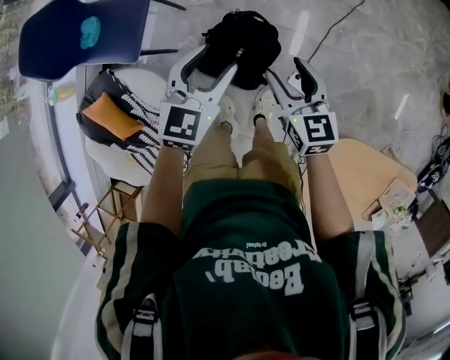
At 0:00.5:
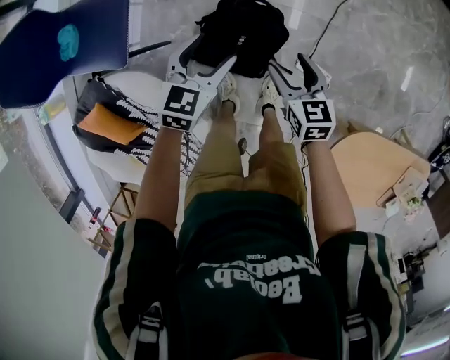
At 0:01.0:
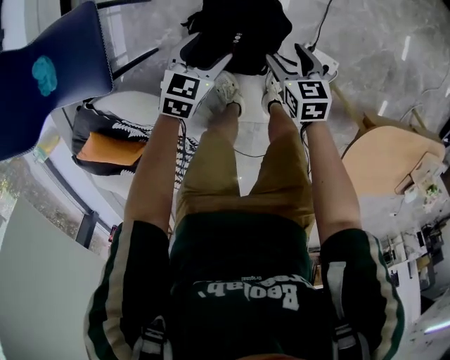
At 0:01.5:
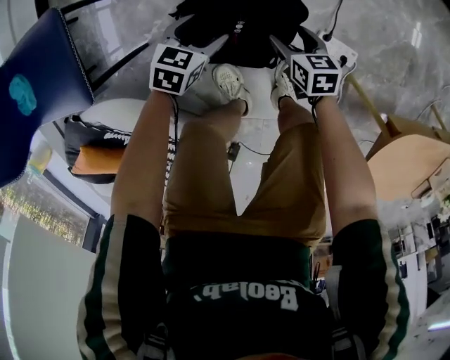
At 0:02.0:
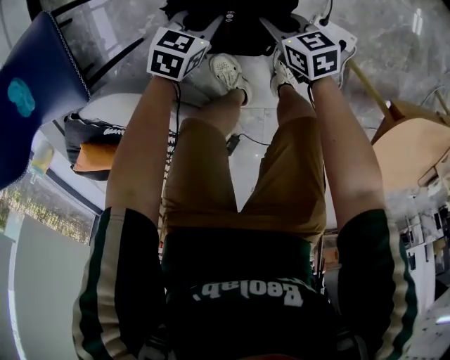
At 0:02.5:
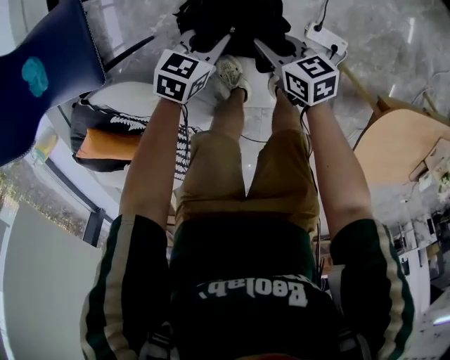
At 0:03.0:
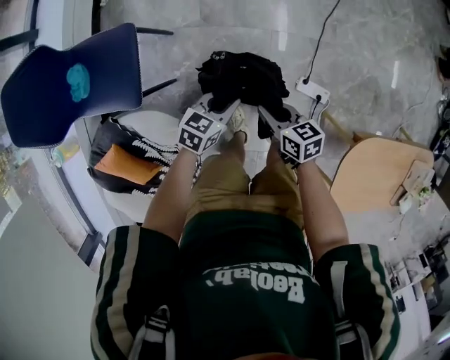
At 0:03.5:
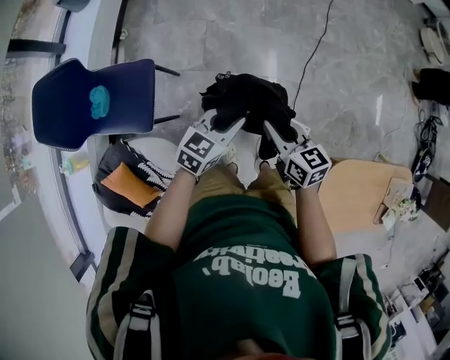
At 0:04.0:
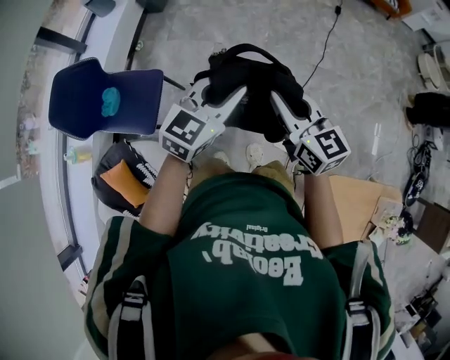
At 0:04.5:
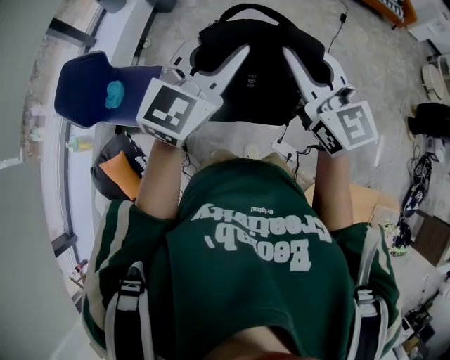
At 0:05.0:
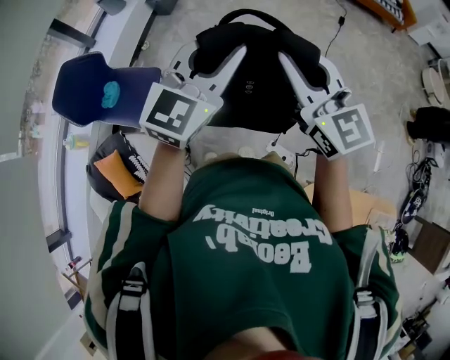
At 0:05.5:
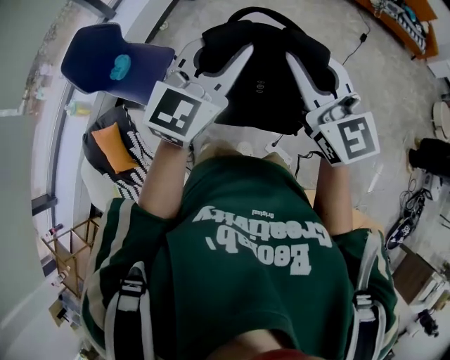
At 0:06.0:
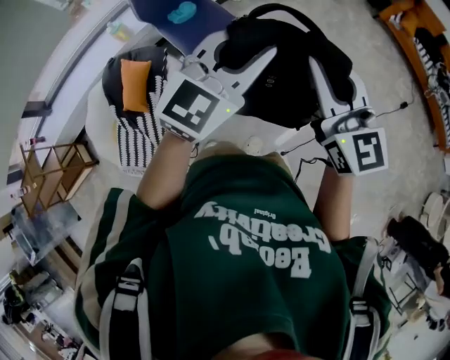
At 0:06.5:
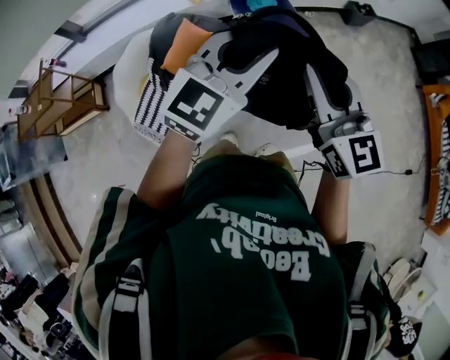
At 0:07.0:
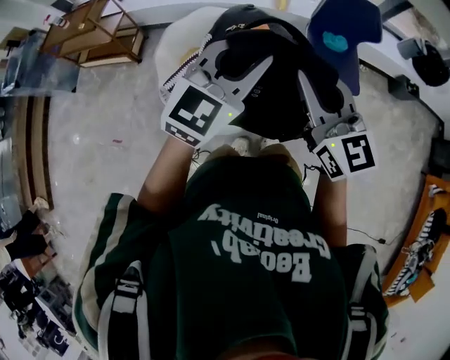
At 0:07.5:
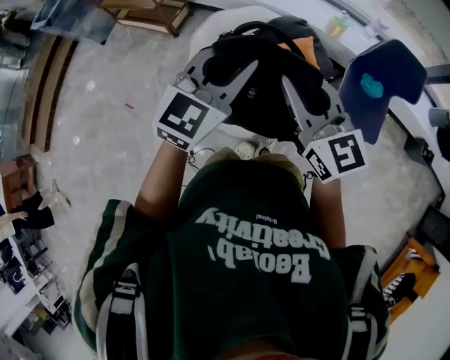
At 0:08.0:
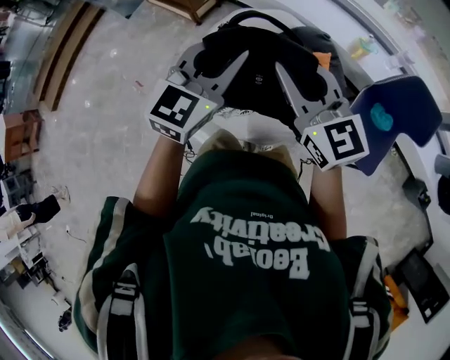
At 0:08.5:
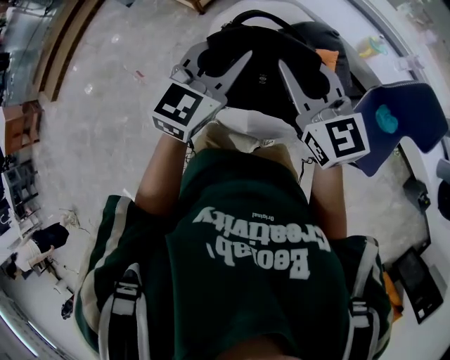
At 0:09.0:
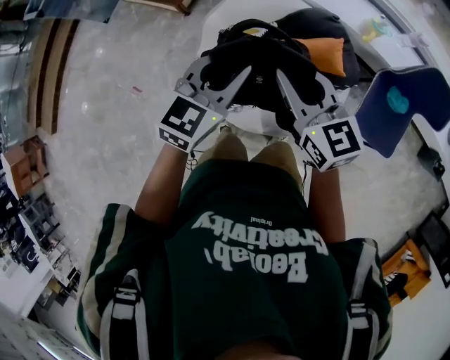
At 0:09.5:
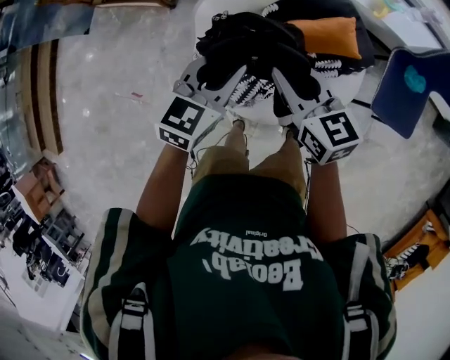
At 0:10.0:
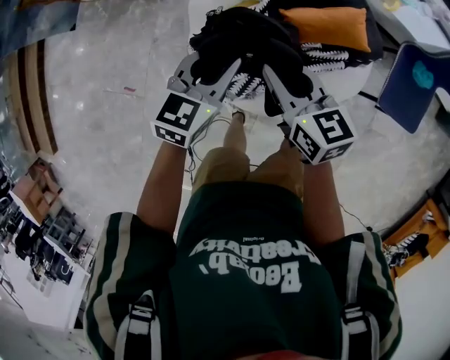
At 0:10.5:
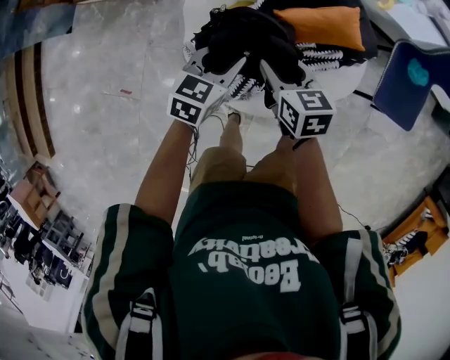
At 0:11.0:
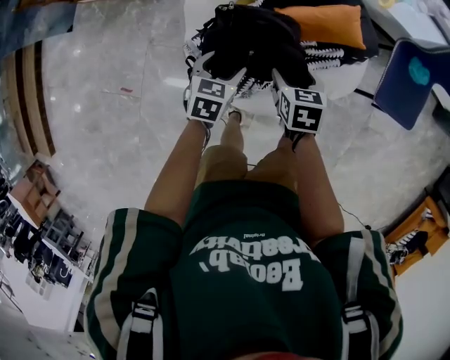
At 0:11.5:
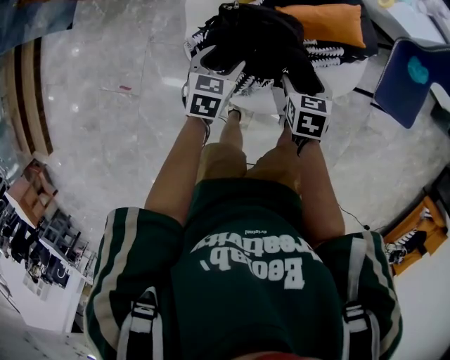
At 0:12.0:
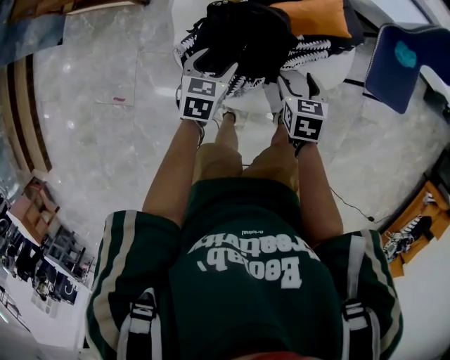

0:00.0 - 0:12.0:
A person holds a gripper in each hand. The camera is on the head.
0:00.0 - 0:02.0: The two grippers go roughly 50 cm downward. The right gripper rotates some 30 degrees, and closes, while the left gripper swivels roughly 40 degrees, and closes its fingers.
0:02.0 - 0:04.0: Both grippers move upward, about 80 cm. The right gripper tilts its fingers some 30 degrees upward; the left gripper points its fingers roughly 30 degrees further upward.
0:04.0 - 0:06.0: The right gripper heads upward, covering roughly 15 cm, and changes its angle by approximately 40 degrees, while the left gripper changes place by some 20 cm, and changes its angle by roughly 40 degrees.
0:06.0 - 0:08.0: The two grippers travel together, roughly 70 cm. The left gripper swivels approximately 80 degrees; the right gripper swivels about 80 degrees.
0:08.0 - 0:10.0: Both grippers move downward, forward and to the left, about 40 cm. The left gripper turns by some 30 degrees, while the right gripper changes its angle by some 40 degrees.
0:10.0 - 0:12.0: The right gripper moves downward, to the right and backward, about 15 cm, angles its fingers downward, by about 30 degrees, and opens. The left gripper is displaced downward and backward by some 10 cm, and opens.

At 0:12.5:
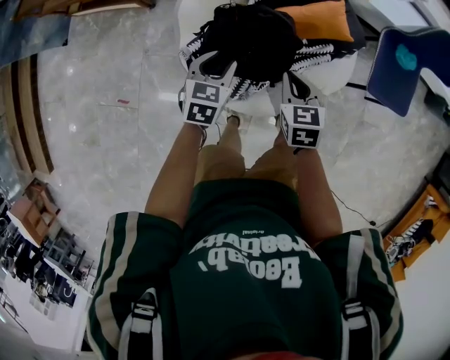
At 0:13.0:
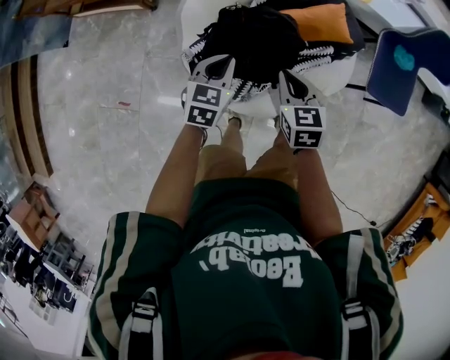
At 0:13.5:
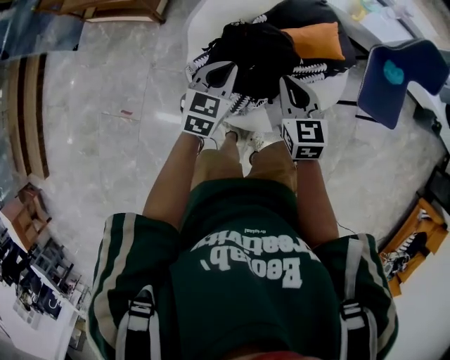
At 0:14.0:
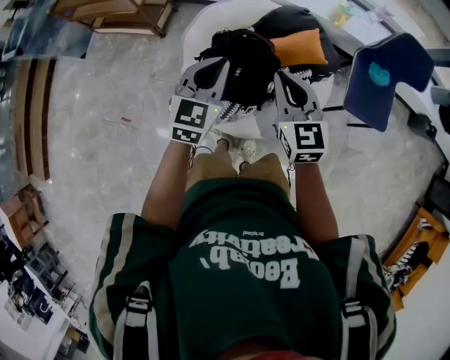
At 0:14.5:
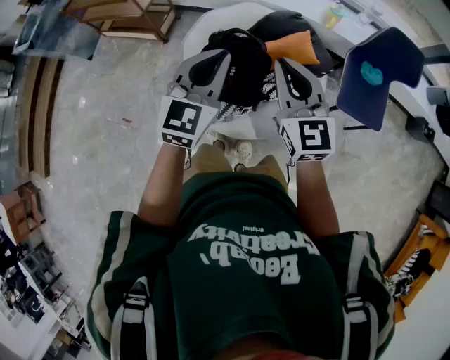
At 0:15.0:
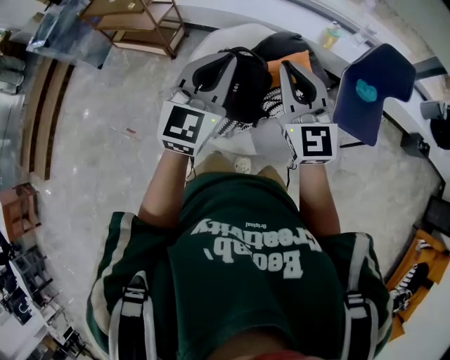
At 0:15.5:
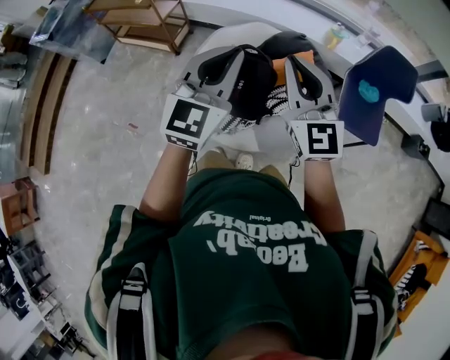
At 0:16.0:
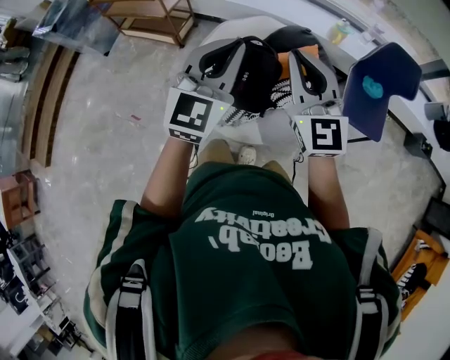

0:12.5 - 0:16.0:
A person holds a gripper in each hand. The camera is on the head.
0:12.5 - 0:14.5: The two grippers go roughly 35 cm upward. The right gripper tips its fingers upward by some 40 degrees. The left gripper angles its fingers upward, by roughly 30 degrees, and closes up.
0:14.5 - 0:16.0: The two grippers go about 15 cm upward and backward.

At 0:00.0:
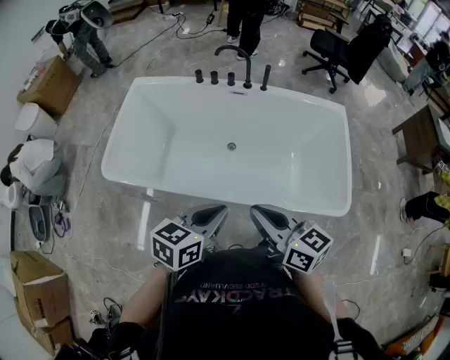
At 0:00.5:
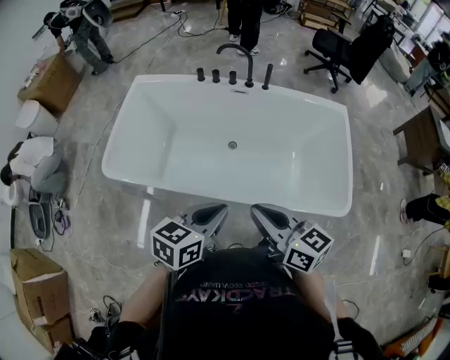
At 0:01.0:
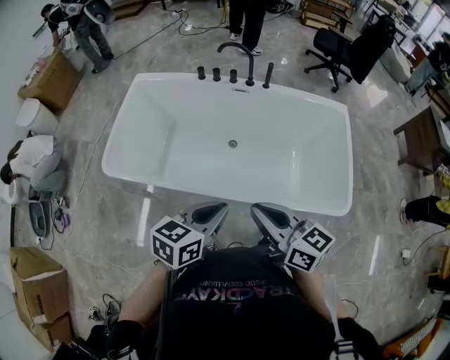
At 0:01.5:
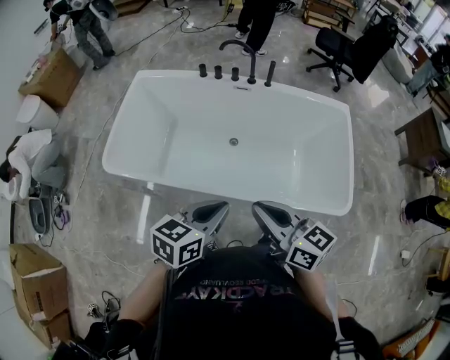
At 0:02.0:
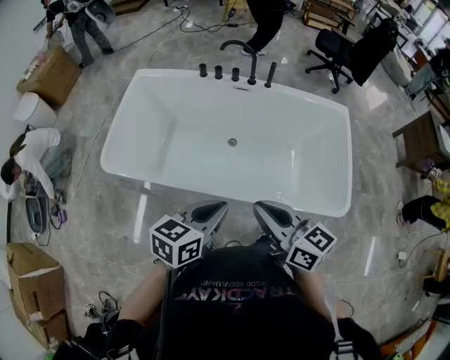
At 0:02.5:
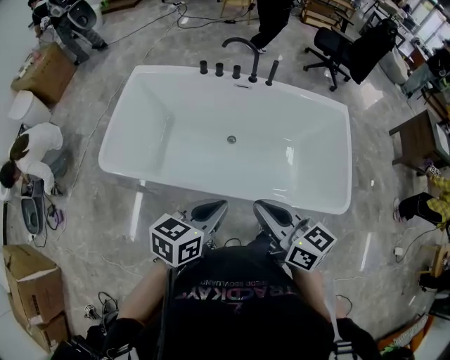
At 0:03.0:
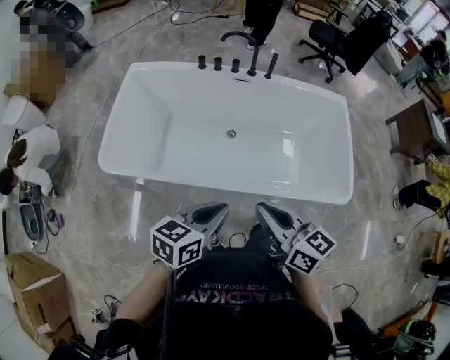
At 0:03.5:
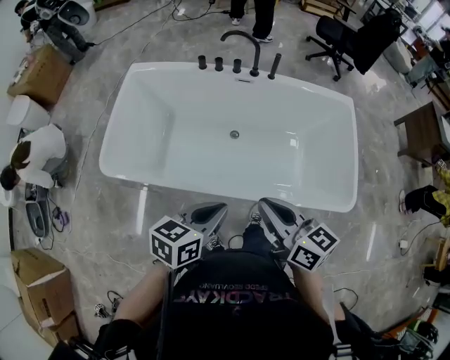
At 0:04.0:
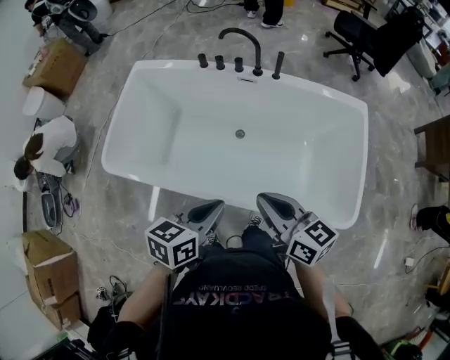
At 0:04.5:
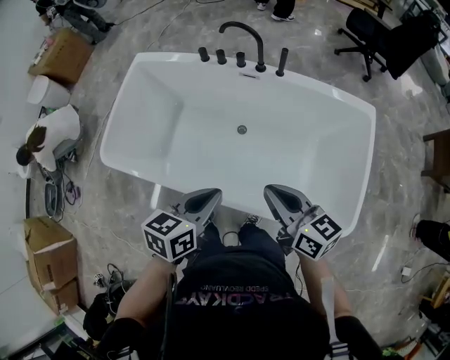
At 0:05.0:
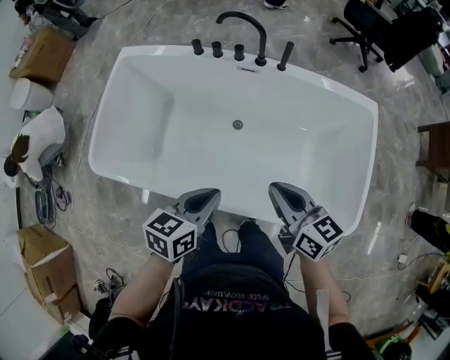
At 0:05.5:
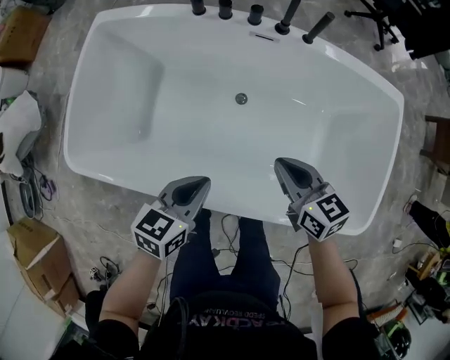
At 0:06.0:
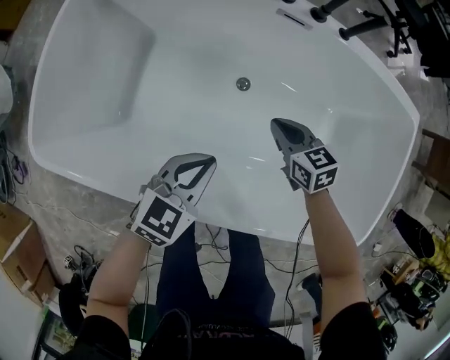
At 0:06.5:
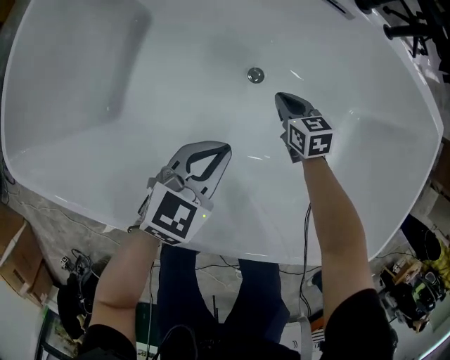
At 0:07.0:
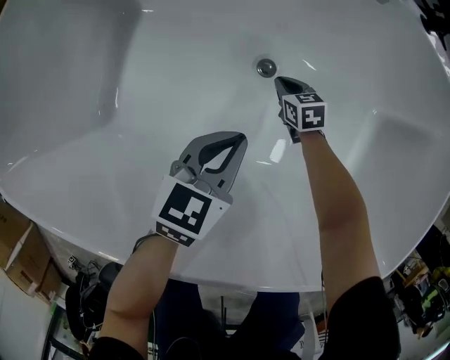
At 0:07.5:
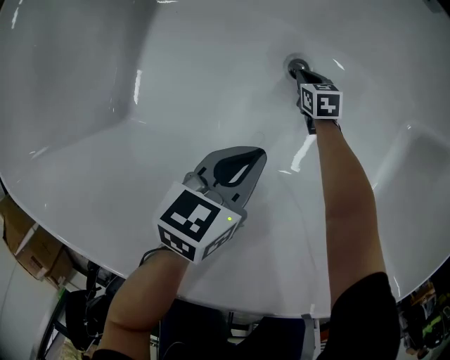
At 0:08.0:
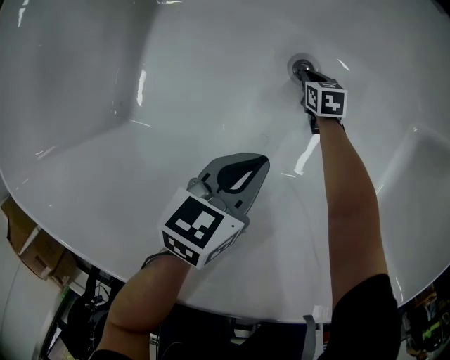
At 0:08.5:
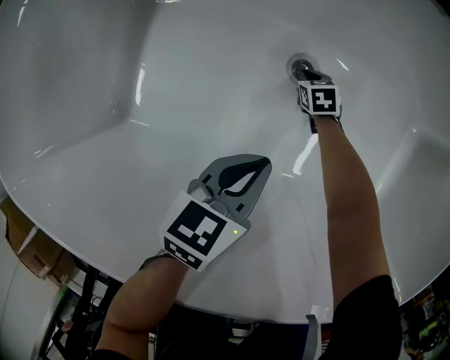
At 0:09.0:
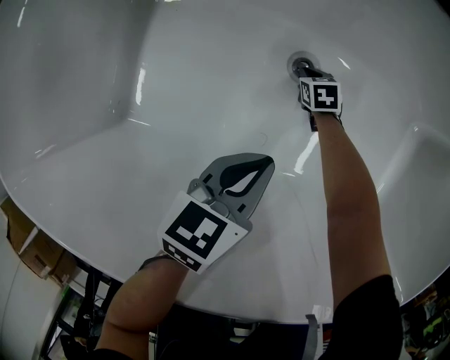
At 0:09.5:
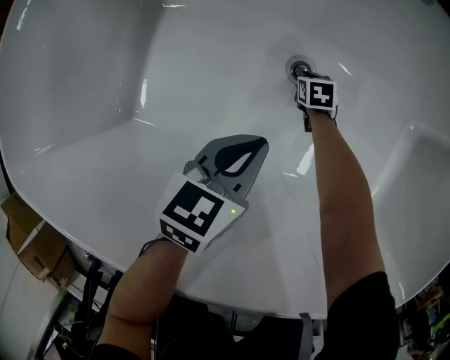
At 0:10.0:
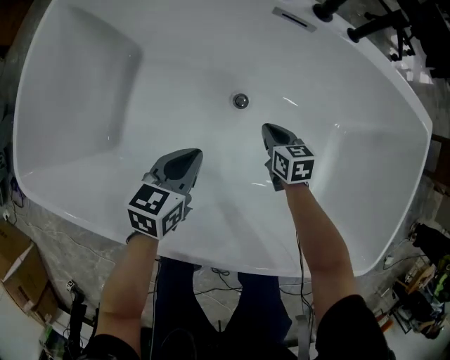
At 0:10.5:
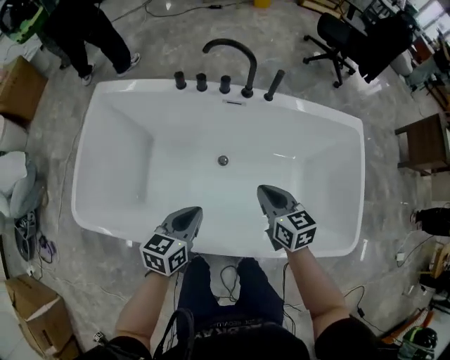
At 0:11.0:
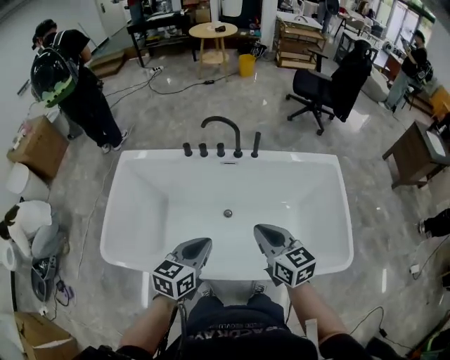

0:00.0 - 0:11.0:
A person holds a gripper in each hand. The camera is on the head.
0:00.0 - 0:02.0: Both grippers stay about where they are.
0:02.0 - 0:03.5: The grippers make only small movements.
0:03.5 - 0:05.5: The grippers both shift downward and forward by roughly 20 cm. The right gripper swivels about 20 degrees.
0:05.5 - 0:07.5: The left gripper shifts roughly 25 cm downward; the right gripper heads downward, covering roughly 50 cm, and changes its angle by approximately 30 degrees.
0:07.5 - 0:09.0: There are only small adjustments of the grippers.
0:09.0 - 0:11.0: The left gripper moves upward, roughly 35 cm, and swivels some 20 degrees, while the right gripper is displaced upward by approximately 70 cm, and tilts its fingers about 50 degrees upward.
